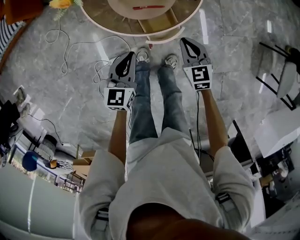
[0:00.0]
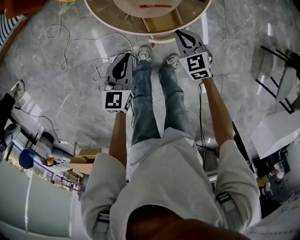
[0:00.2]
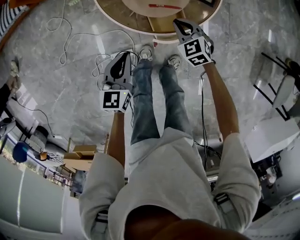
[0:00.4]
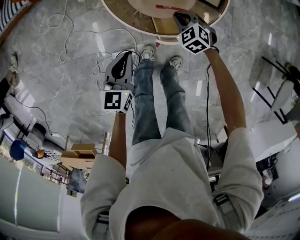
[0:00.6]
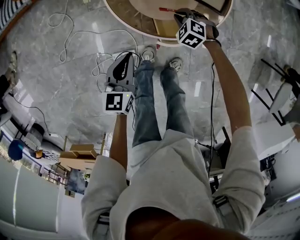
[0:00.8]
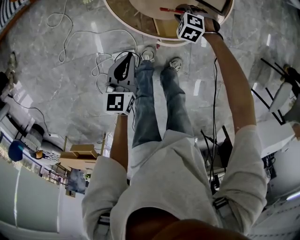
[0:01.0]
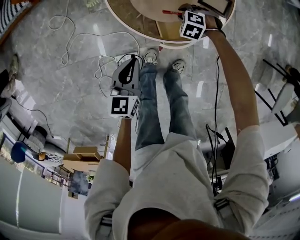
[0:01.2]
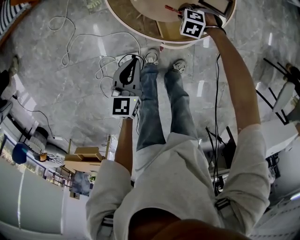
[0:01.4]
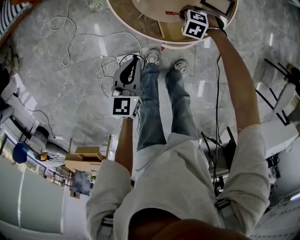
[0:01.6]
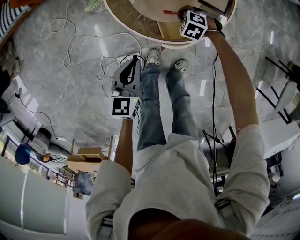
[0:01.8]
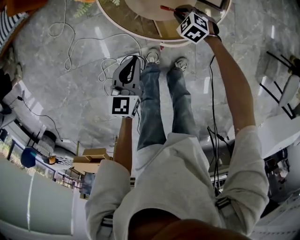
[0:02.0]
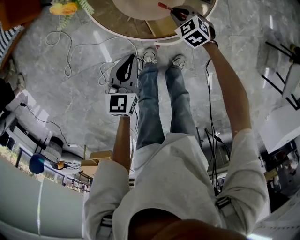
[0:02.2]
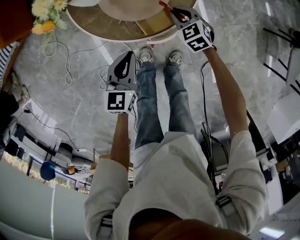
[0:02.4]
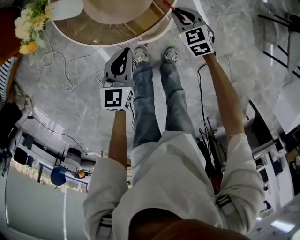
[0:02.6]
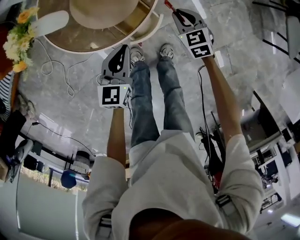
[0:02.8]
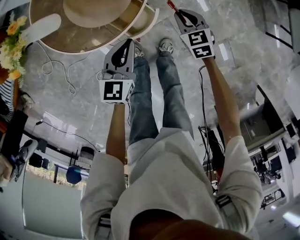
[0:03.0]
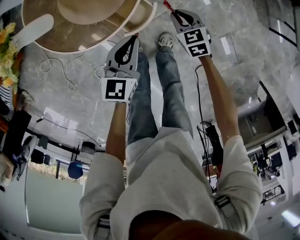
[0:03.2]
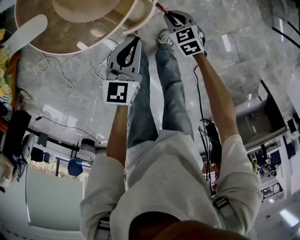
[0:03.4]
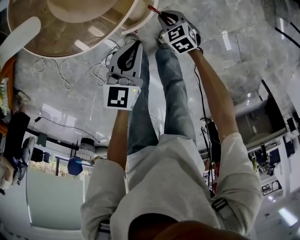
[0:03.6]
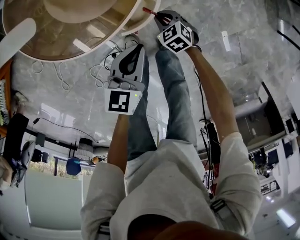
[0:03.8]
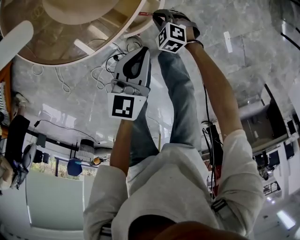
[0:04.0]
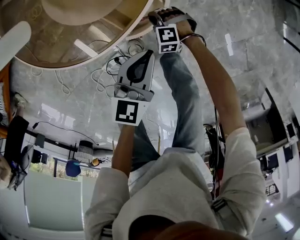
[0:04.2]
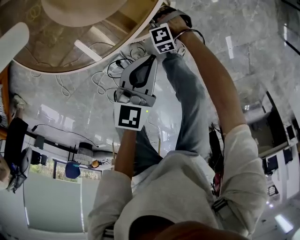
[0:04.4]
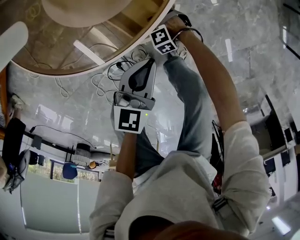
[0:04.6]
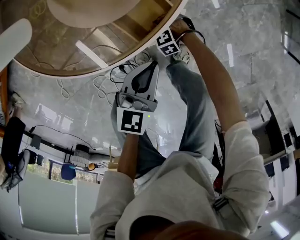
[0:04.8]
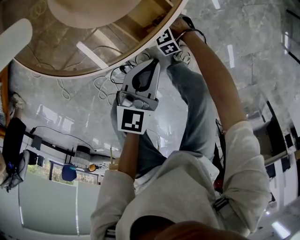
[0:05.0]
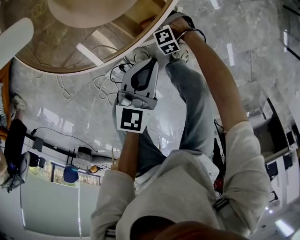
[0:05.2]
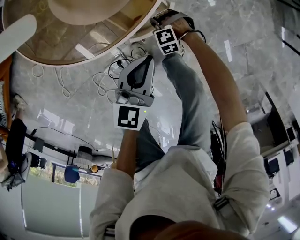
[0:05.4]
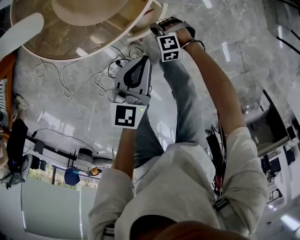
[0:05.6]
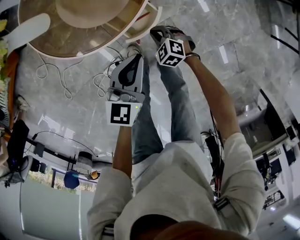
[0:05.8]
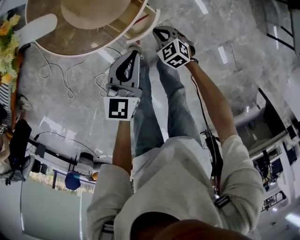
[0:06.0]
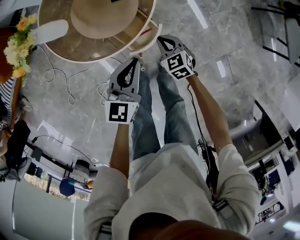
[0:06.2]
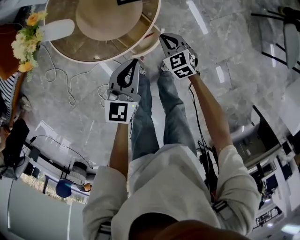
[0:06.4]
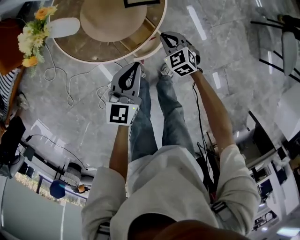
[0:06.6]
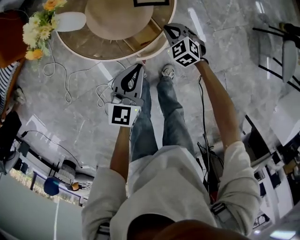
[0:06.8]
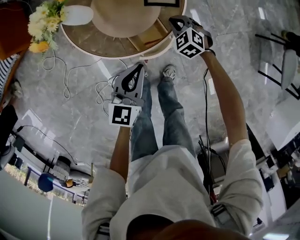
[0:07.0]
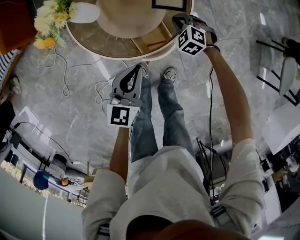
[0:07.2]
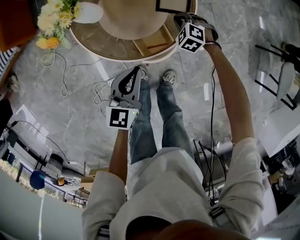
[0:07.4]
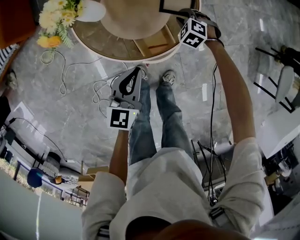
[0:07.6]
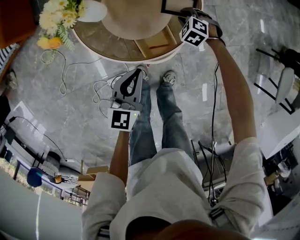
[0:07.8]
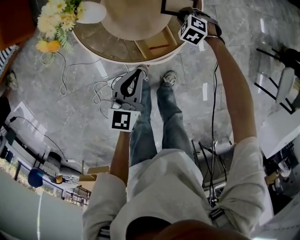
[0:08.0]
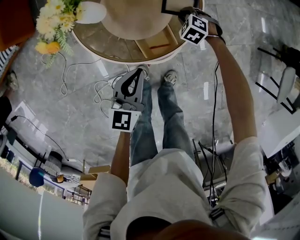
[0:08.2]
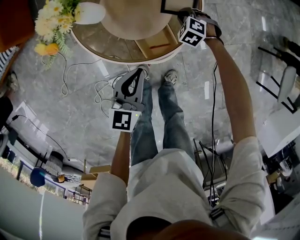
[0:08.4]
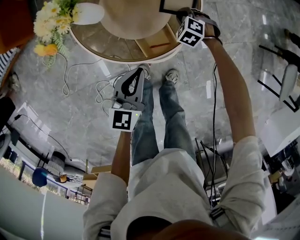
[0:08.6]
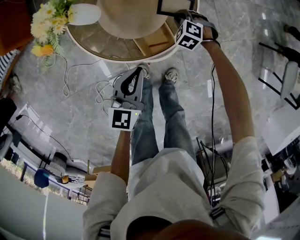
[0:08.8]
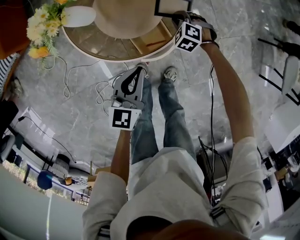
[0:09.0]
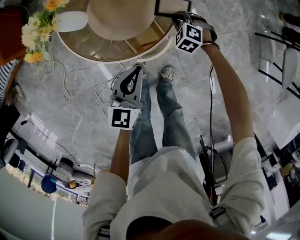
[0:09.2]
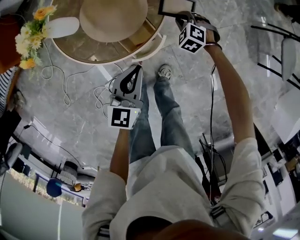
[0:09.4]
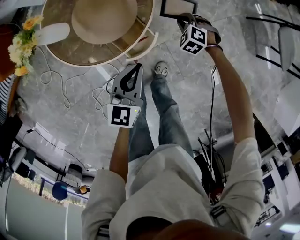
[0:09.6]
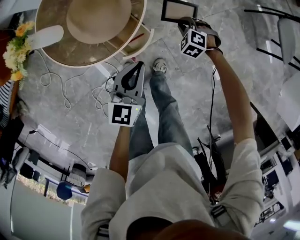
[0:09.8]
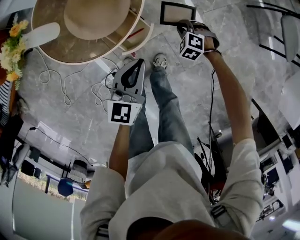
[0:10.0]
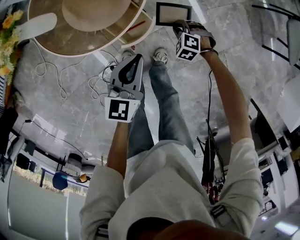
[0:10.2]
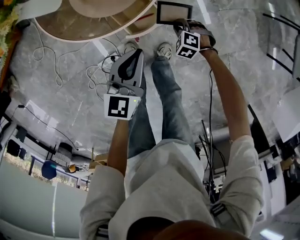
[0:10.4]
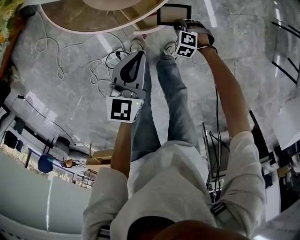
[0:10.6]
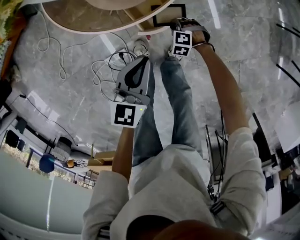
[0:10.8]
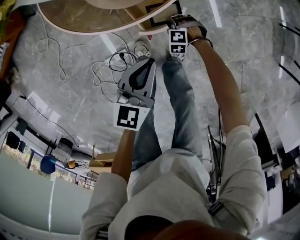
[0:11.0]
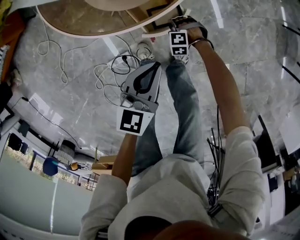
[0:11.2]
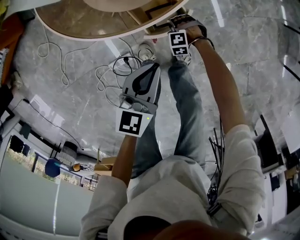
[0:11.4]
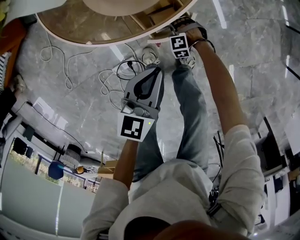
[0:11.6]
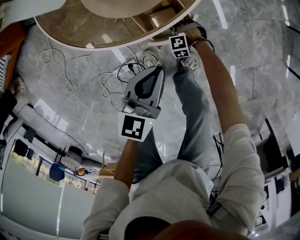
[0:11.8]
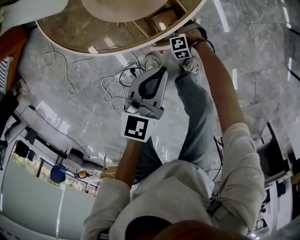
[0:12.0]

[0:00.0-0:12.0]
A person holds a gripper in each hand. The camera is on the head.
0:00.0 to 0:01.6: The right gripper moves about 25 cm, and tips its fingers downward by roughly 40 degrees. Meanwhile the left gripper shifts by roughly 10 cm.
0:01.6 to 0:03.0: The right gripper moves roughly 35 cm, and rotates around the line of its fingers by about 70 degrees, clockwise from behind. The left gripper shifts by roughly 30 cm, and changes its angle by roughly 30 degrees.
0:03.0 to 0:04.4: The right gripper shifts approximately 35 cm downward and to the left, and rotates around the line of its fingers by about 70 degrees, counterclockwise from behind. Meanwhile the left gripper shifts about 15 cm downward.
0:04.4 to 0:06.0: Both grippers travel together upward, roughly 20 cm. The right gripper rolls clockwise, seen from behind, by some 60 degrees.
0:06.0 to 0:07.6: The left gripper shifts some 15 cm to the left and forward. The right gripper goes about 25 cm forward, twists approximately 40 degrees counterclockwise, seen from behind, and opens its fingers.
0:07.6 to 0:09.0: The grippers move only a little.
0:09.0 to 0:10.4: The left gripper changes place by roughly 15 cm. The right gripper changes place by some 25 cm.
0:10.4 to 0:12.0: The right gripper shifts some 20 cm downward, and changes its angle by approximately 30 degrees. Meanwhile the left gripper heads downward, covering roughly 10 cm.

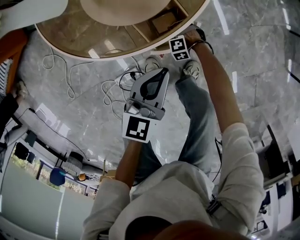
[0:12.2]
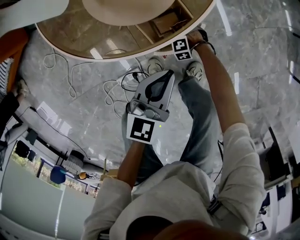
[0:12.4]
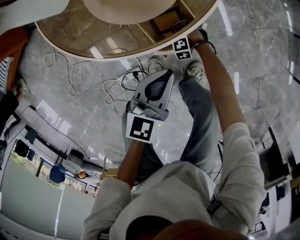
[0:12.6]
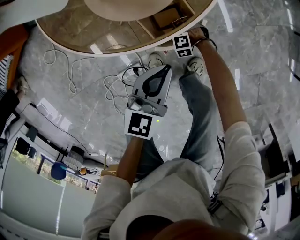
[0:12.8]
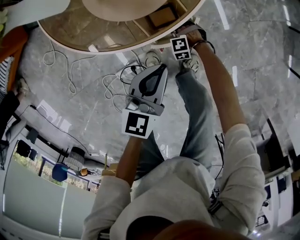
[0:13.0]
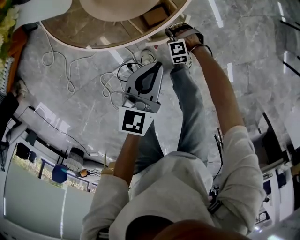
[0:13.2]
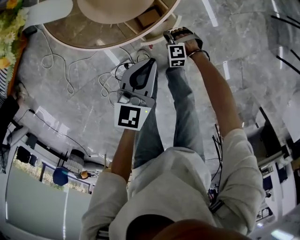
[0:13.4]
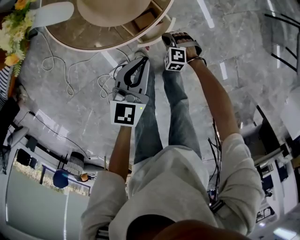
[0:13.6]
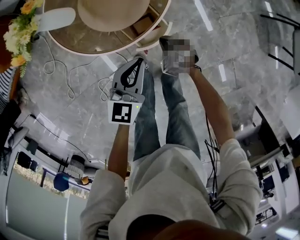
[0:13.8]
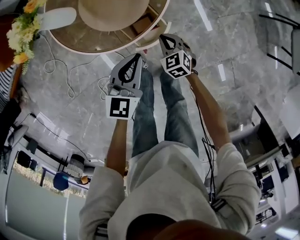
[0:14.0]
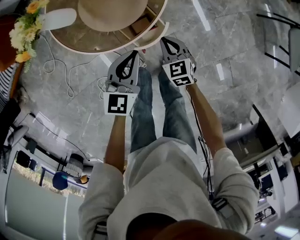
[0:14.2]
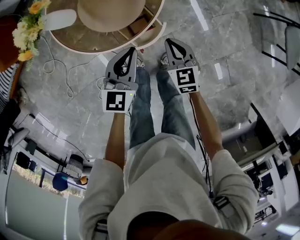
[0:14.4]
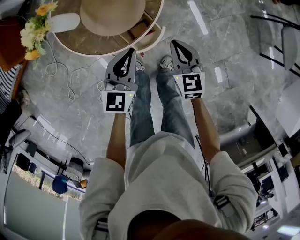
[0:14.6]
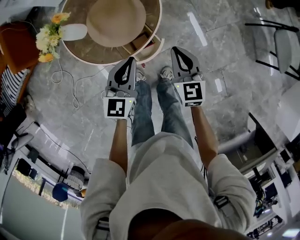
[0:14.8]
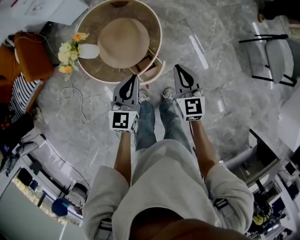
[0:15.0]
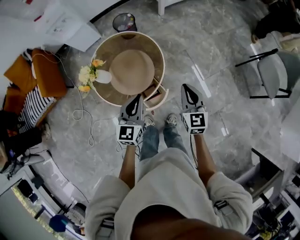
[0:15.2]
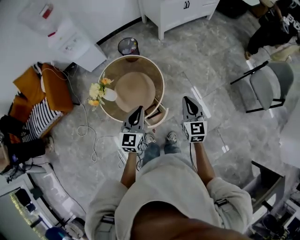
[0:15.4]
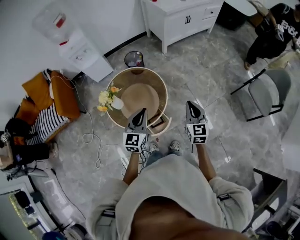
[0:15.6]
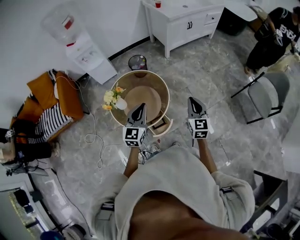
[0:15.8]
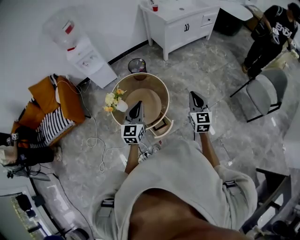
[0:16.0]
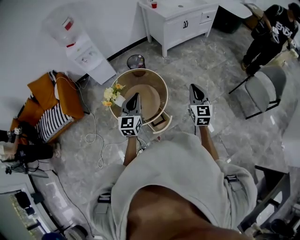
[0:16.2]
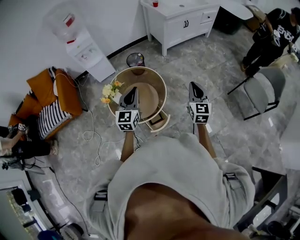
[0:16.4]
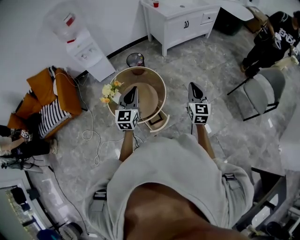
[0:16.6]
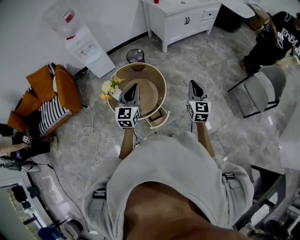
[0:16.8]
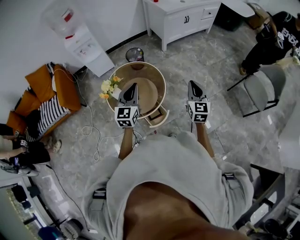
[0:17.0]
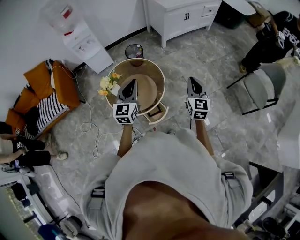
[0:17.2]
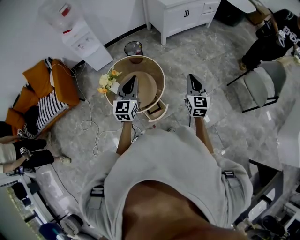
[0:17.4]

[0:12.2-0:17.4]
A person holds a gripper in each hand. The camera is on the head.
0:12.2 to 0:14.0: The right gripper shifts roughly 35 cm upward, and rotates around the line of its fingers by approximately 70 degrees, clockwise from behind. Meanwhile the left gripper heads upward, covering roughly 15 cm.
0:14.0 to 0:15.6: Both grippers move upward, approximately 40 cm. The right gripper tilts its fingers some 30 degrees upward.
0:15.6 to 0:17.4: The grippers both shift upward by about 10 cm.

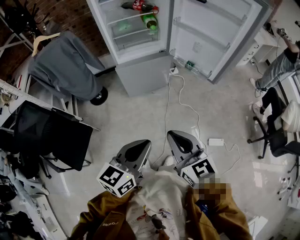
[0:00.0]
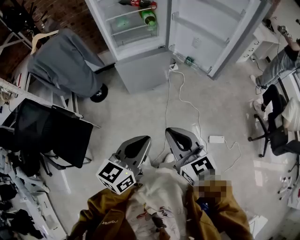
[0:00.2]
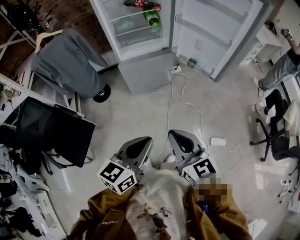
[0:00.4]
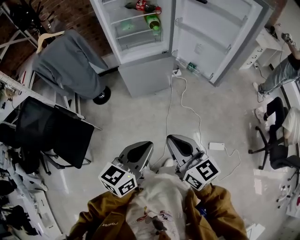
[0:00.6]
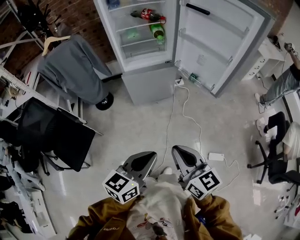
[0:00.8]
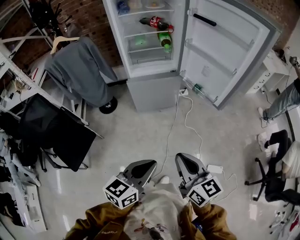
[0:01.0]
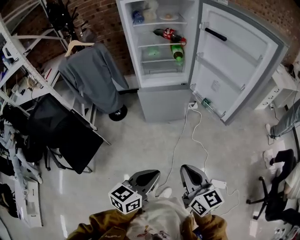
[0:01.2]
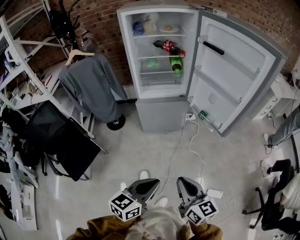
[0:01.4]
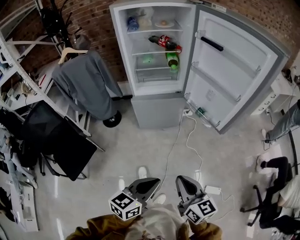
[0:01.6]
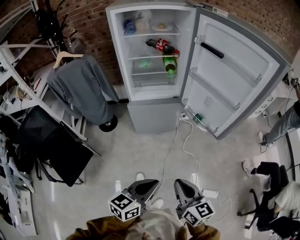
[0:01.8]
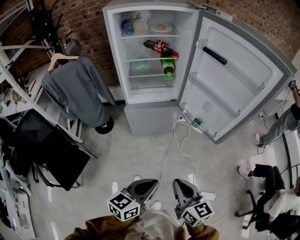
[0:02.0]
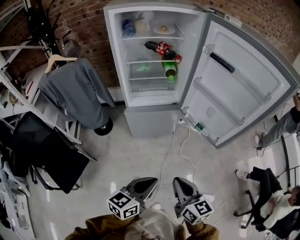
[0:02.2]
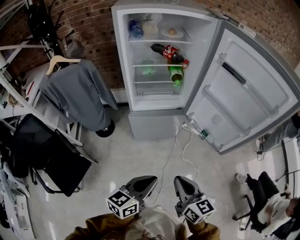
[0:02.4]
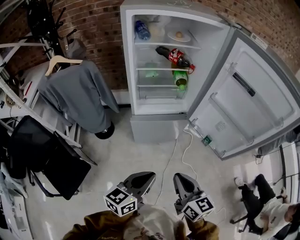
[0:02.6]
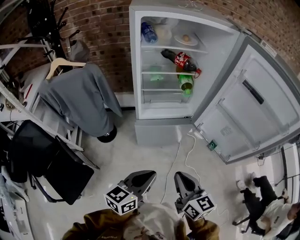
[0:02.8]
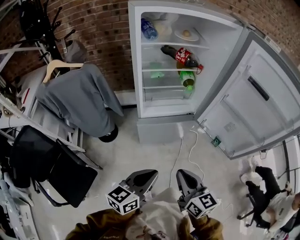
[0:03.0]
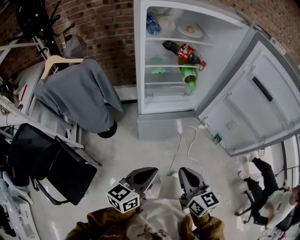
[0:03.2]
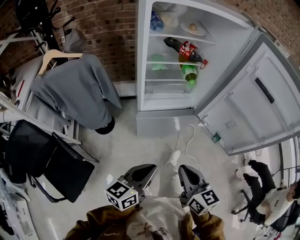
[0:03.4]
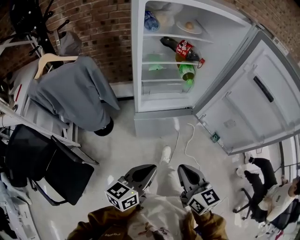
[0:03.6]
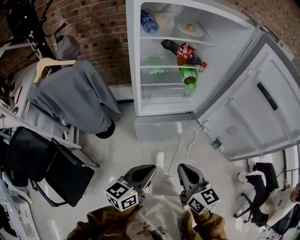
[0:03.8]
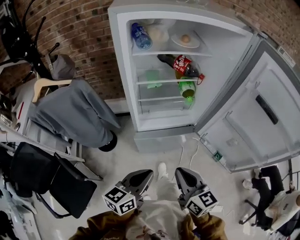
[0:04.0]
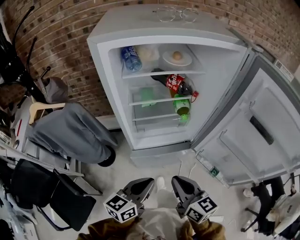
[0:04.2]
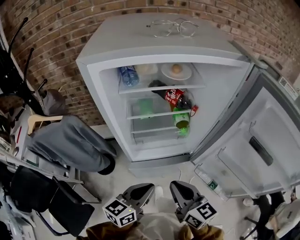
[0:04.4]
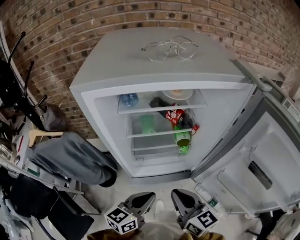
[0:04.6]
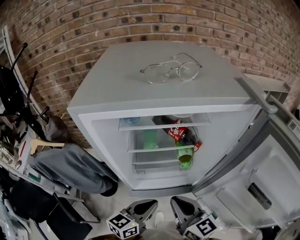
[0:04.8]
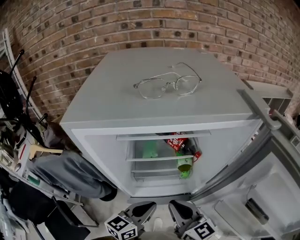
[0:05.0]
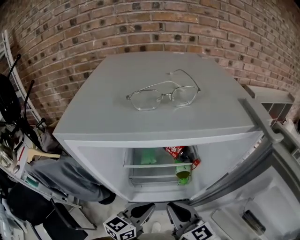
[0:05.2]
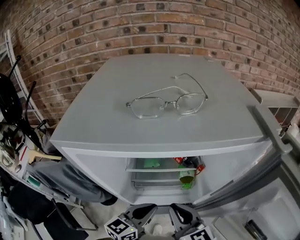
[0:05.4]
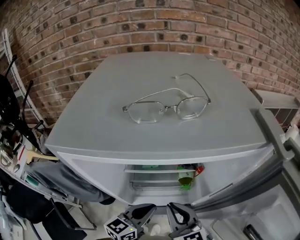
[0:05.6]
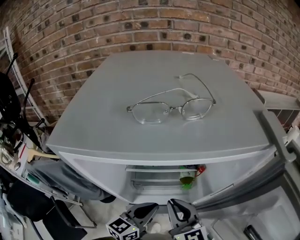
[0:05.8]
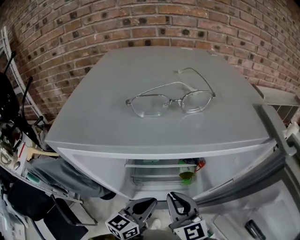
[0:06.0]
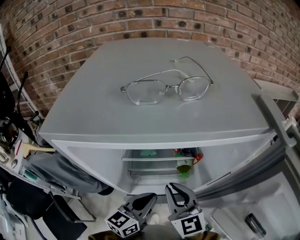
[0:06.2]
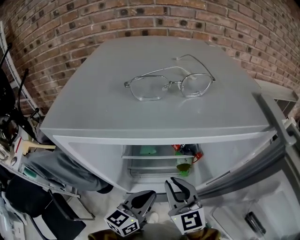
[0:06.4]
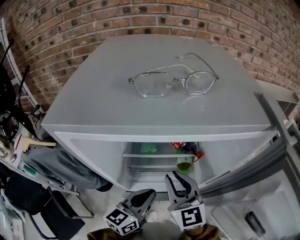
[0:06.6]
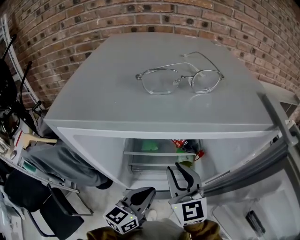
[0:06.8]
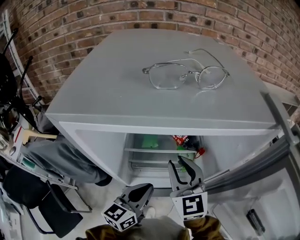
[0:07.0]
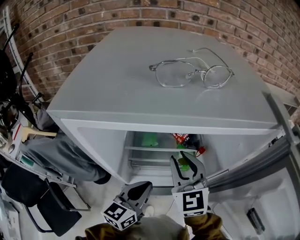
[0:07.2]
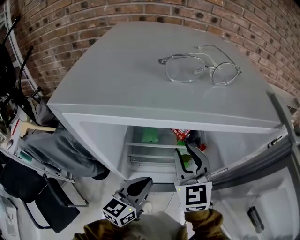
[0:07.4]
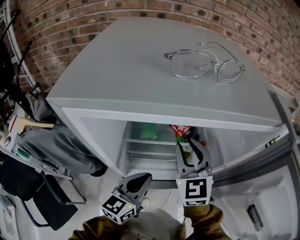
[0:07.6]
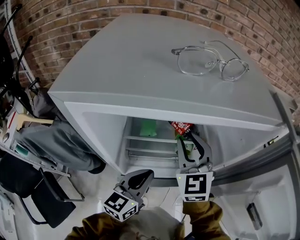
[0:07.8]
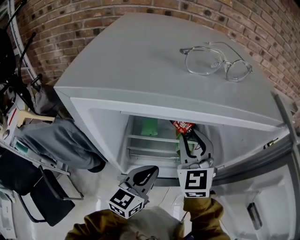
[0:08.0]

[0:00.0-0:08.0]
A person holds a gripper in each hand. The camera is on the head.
0:00.0 to 0:01.6: Both grippers move to the right, some 10 cm.
0:01.6 to 0:03.2: Both grippers travel together forward and to the left, approximately 35 cm.
0:03.2 to 0:04.8: Both grippers travel together forward, some 30 cm.
0:04.8 to 0:06.4: The grippers both shift forward by approximately 10 cm. The right gripper turns by roughly 20 degrees.
0:06.4 to 0:08.0: The right gripper moves forward, approximately 10 cm, and changes its angle by about 30 degrees.
